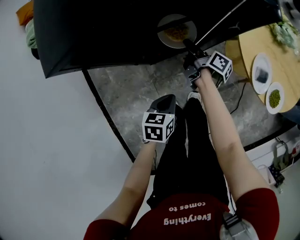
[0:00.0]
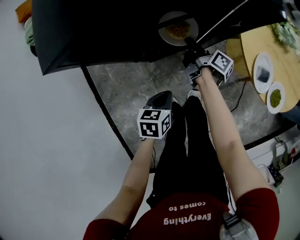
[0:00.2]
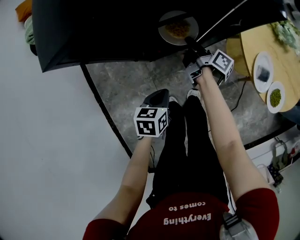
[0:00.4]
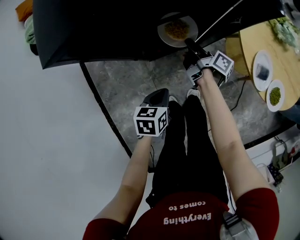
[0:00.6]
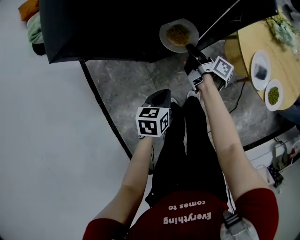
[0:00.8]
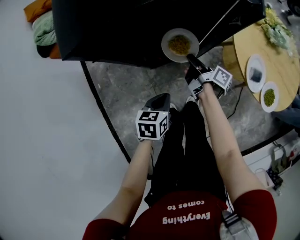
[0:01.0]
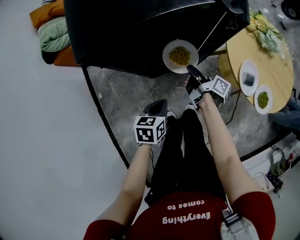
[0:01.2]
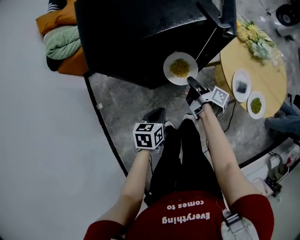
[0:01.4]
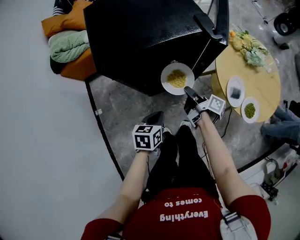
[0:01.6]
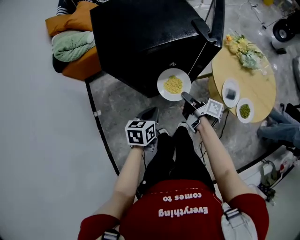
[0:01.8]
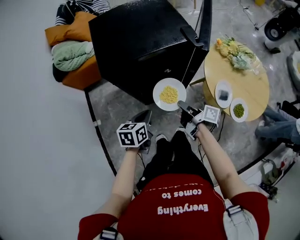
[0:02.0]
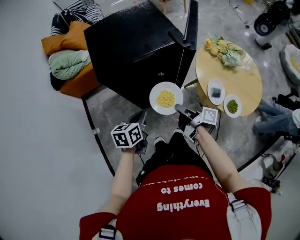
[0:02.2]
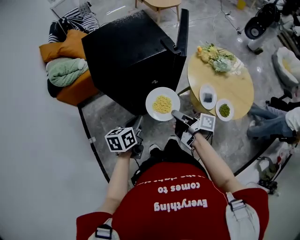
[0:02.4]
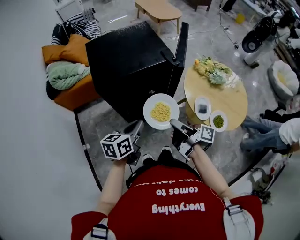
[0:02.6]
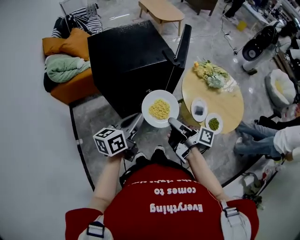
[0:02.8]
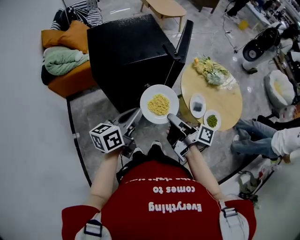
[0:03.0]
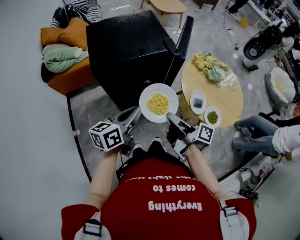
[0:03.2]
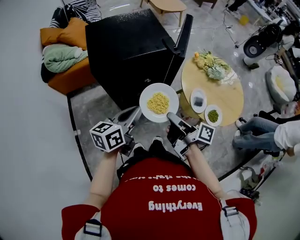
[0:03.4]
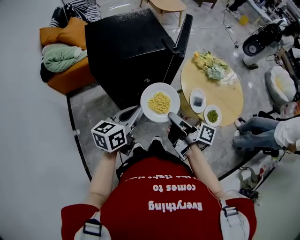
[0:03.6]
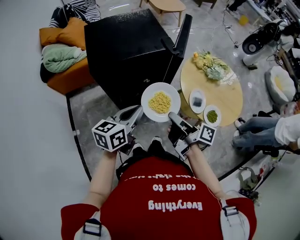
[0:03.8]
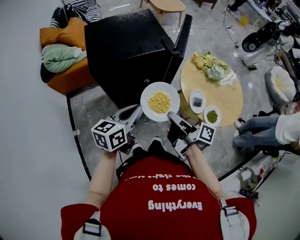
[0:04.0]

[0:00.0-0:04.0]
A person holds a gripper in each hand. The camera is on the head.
0:00.0 to 0:01.4: The left gripper goes some 10 cm upward.
0:01.4 to 0:02.6: The left gripper is displaced upward by approximately 20 cm, and changes its angle by roughly 20 degrees.

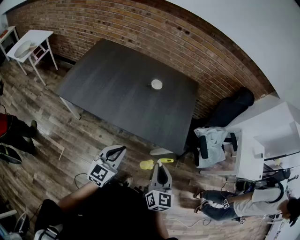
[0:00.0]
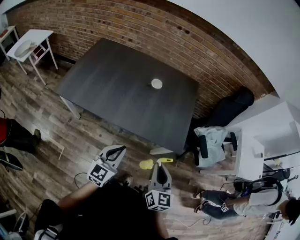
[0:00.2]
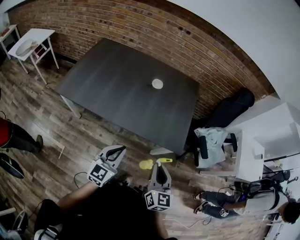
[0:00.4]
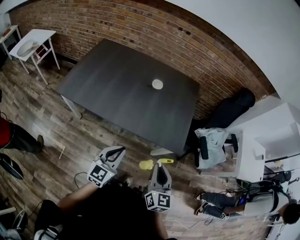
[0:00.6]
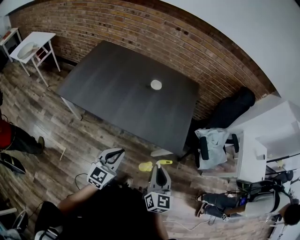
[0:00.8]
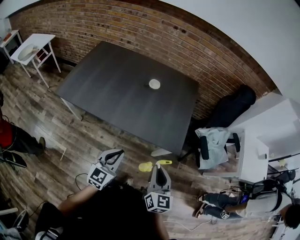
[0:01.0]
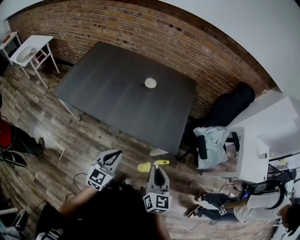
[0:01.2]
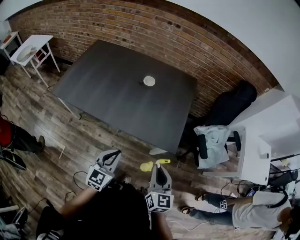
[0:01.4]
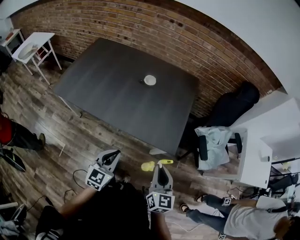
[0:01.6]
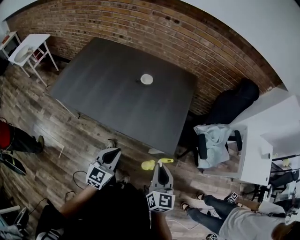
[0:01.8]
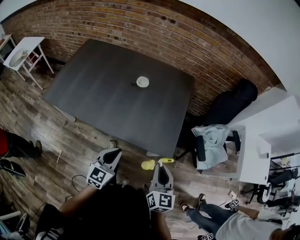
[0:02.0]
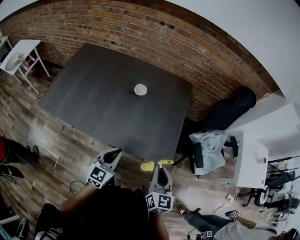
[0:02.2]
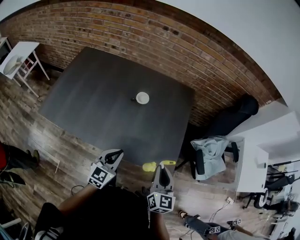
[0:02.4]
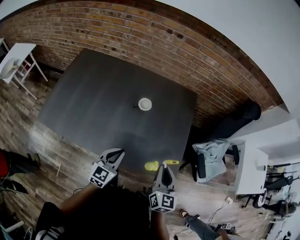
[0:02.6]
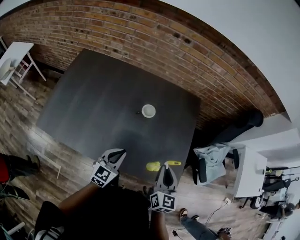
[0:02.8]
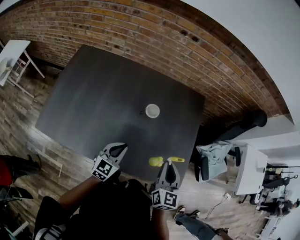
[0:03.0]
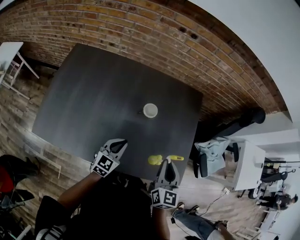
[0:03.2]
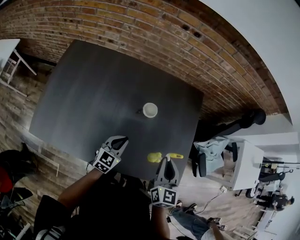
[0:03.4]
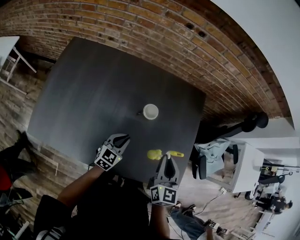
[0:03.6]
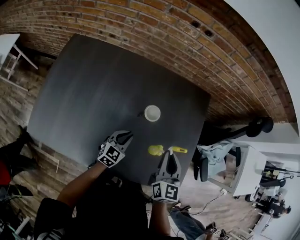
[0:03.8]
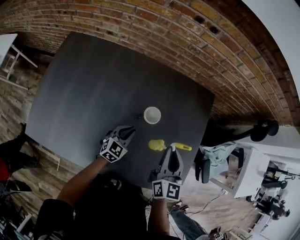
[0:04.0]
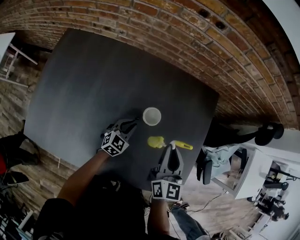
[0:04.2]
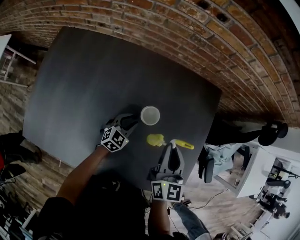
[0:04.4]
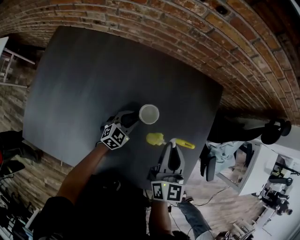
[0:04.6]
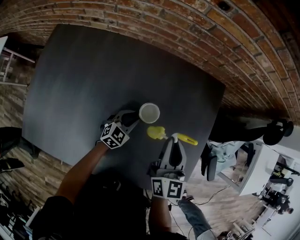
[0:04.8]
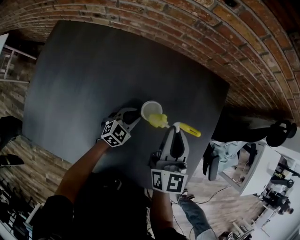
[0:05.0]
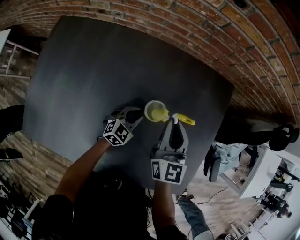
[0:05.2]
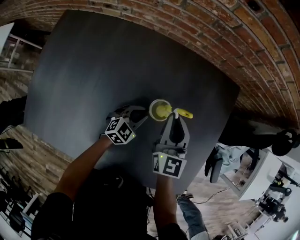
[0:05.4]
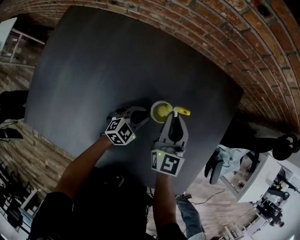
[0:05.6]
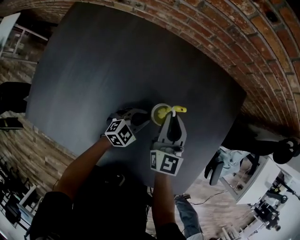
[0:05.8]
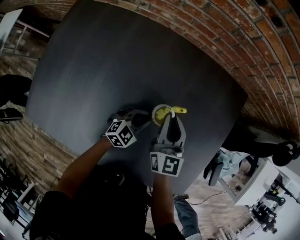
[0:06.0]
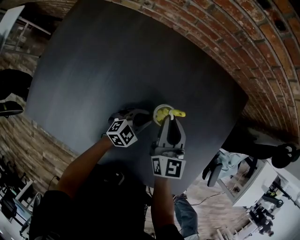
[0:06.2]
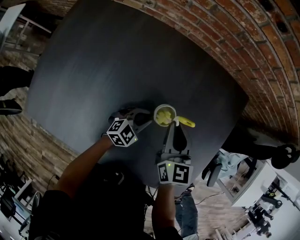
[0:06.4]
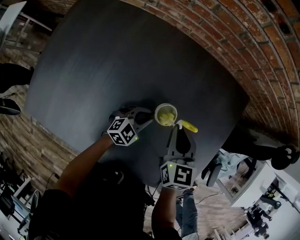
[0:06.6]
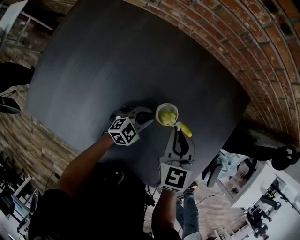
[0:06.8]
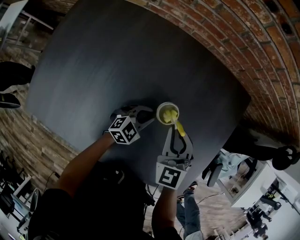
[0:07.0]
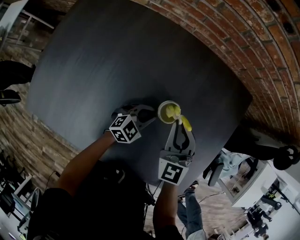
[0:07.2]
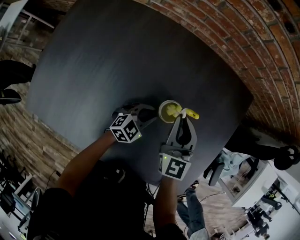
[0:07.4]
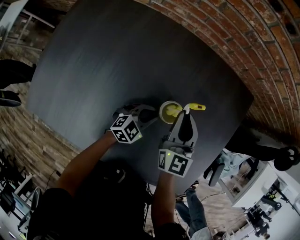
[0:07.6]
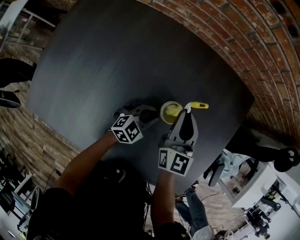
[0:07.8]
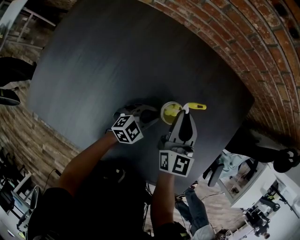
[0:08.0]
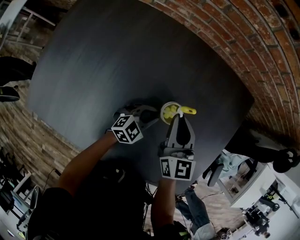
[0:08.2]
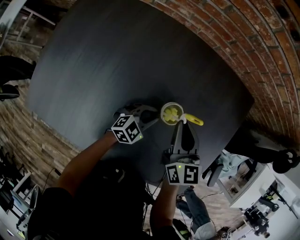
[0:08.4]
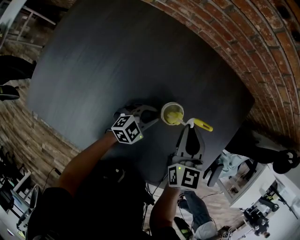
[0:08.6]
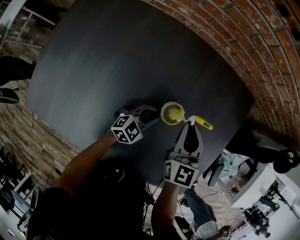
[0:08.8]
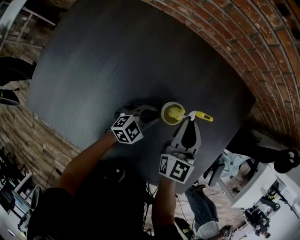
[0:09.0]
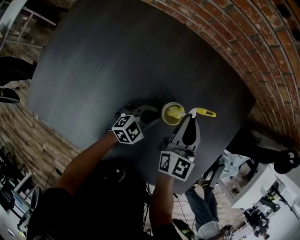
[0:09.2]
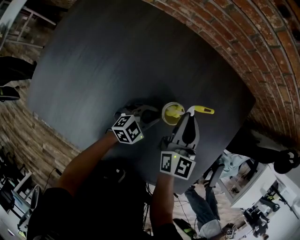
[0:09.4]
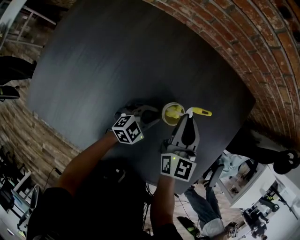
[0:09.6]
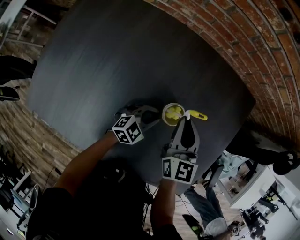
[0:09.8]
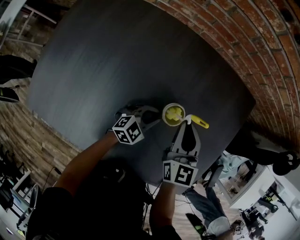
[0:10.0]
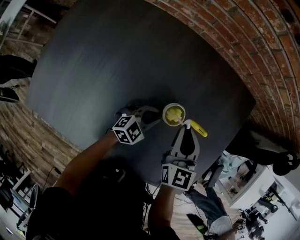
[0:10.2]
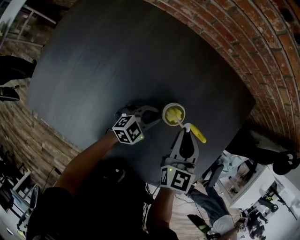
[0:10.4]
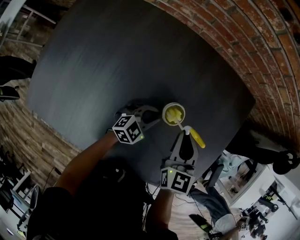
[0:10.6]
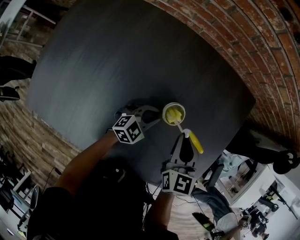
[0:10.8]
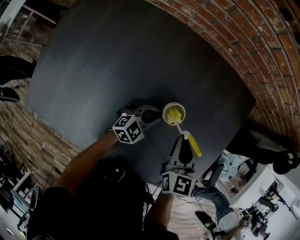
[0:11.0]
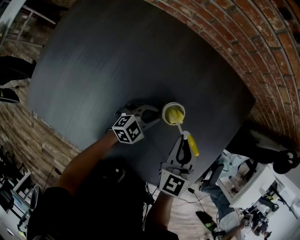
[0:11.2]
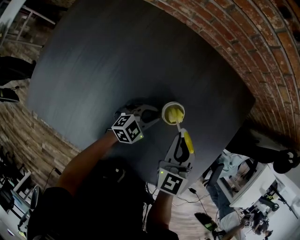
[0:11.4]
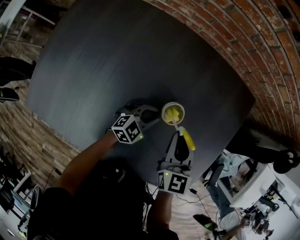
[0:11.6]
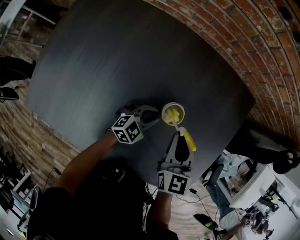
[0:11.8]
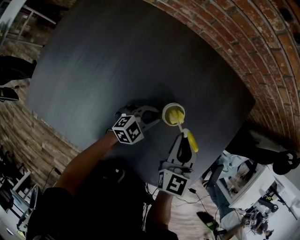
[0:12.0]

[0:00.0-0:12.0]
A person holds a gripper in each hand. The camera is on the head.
0:00.0 to 0:01.6: Both grippers travel together to the right, roughly 10 cm.
0:01.6 to 0:03.0: The two grippers go about 35 cm forward and to the left.
0:03.0 to 0:04.4: The right gripper moves forward, approximately 20 cm. The left gripper travels forward and downward by approximately 30 cm, and opens.
0:04.4 to 0:06.0: The right gripper heads to the left and downward, covering about 15 cm.
0:07.6 to 0:10.4: There are only small adjustments of the grippers.
0:10.4 to 0:12.0: The grippers stay close to where they were, moving slightly.

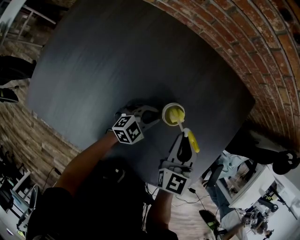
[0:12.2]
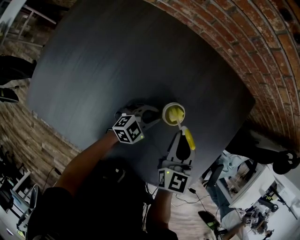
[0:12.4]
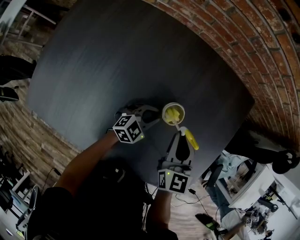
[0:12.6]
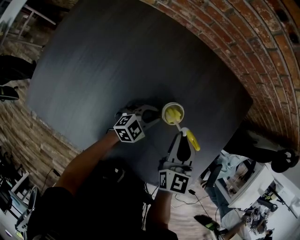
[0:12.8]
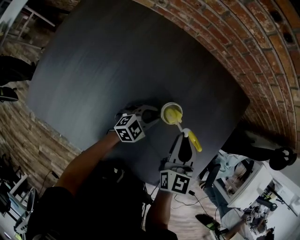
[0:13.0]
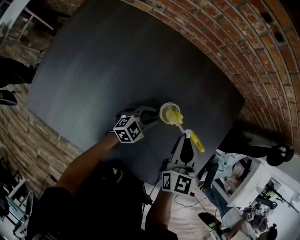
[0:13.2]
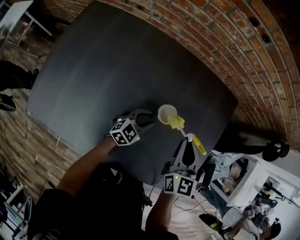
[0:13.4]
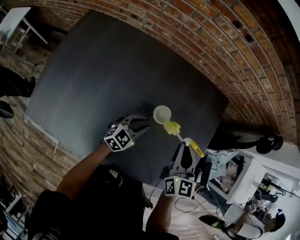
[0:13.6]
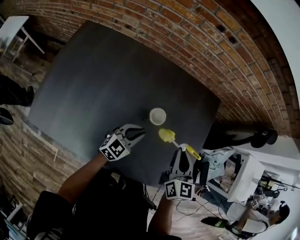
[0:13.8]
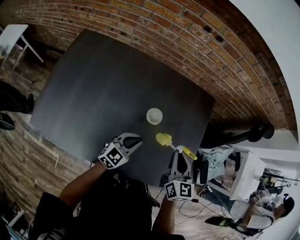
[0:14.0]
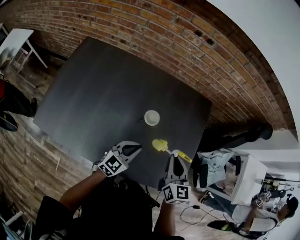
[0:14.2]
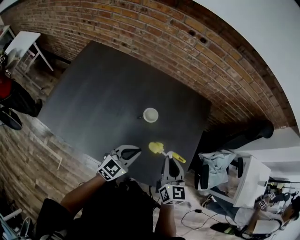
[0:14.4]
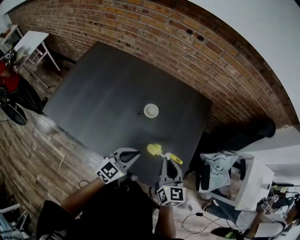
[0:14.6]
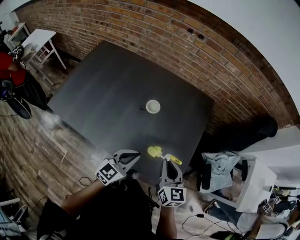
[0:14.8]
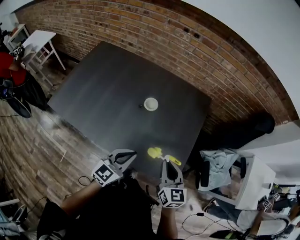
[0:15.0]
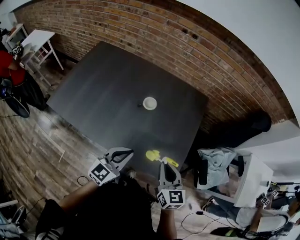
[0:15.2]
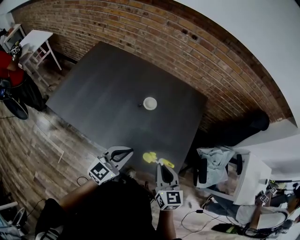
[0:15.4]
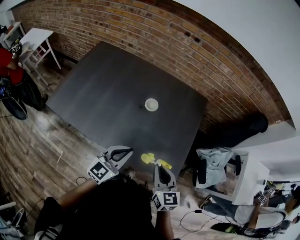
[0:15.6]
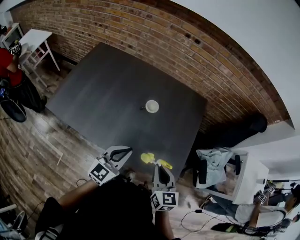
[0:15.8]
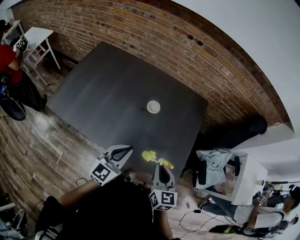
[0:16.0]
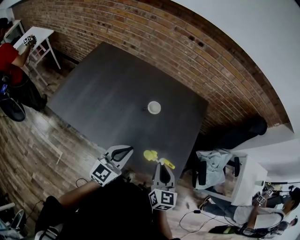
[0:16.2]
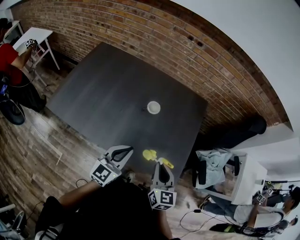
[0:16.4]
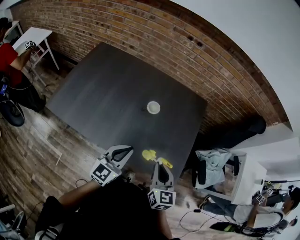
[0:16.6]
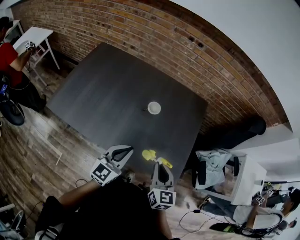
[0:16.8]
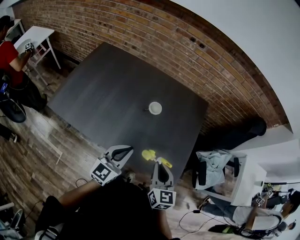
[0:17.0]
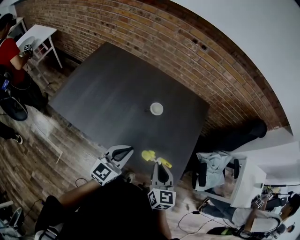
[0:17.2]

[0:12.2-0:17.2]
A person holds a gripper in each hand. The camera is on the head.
0:12.2 to 0:13.8: The left gripper travels upward and backward by about 15 cm; the right gripper goes some 15 cm upward, backward and to the right.
0:13.8 to 0:15.6: The right gripper is displaced backward by some 25 cm. The left gripper is displaced backward and upward by roughly 30 cm.
0:15.6 to 0:17.2: There are only small adjustments of the grippers.

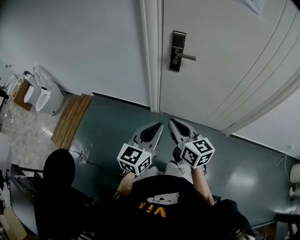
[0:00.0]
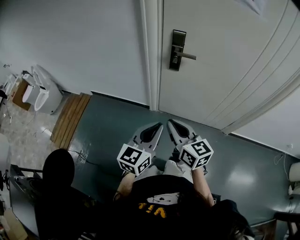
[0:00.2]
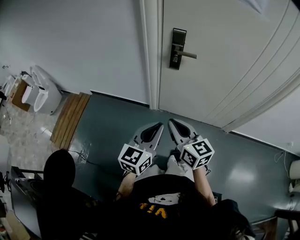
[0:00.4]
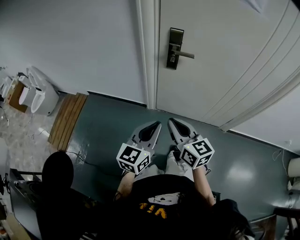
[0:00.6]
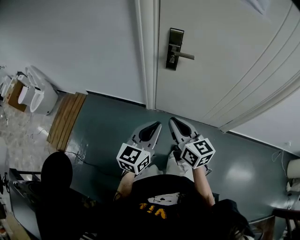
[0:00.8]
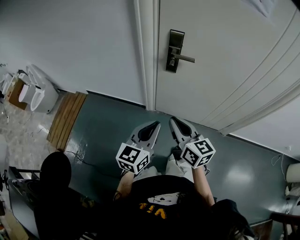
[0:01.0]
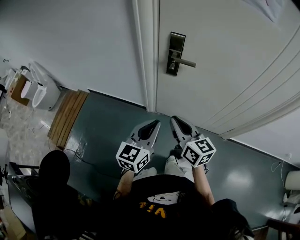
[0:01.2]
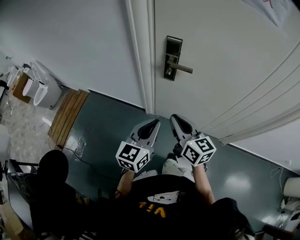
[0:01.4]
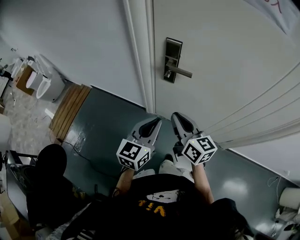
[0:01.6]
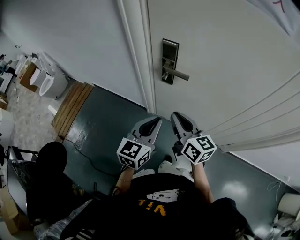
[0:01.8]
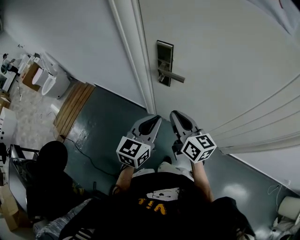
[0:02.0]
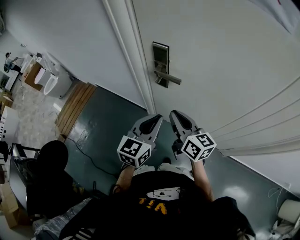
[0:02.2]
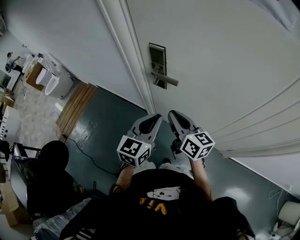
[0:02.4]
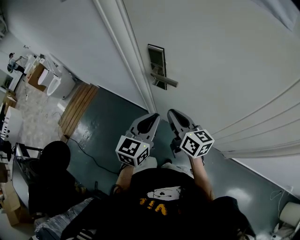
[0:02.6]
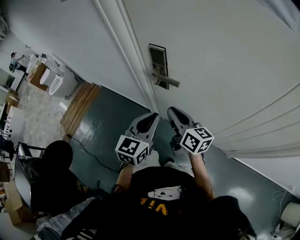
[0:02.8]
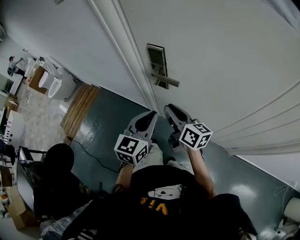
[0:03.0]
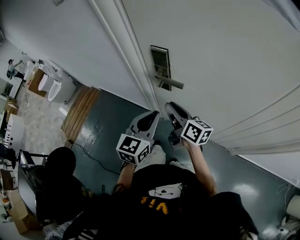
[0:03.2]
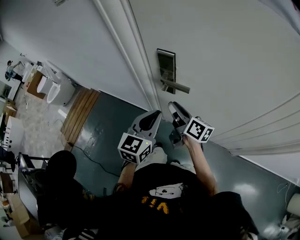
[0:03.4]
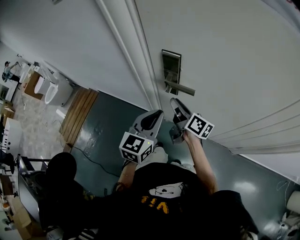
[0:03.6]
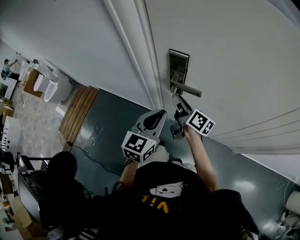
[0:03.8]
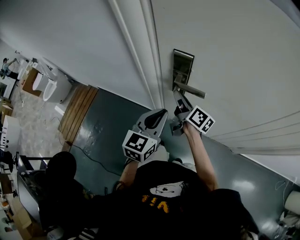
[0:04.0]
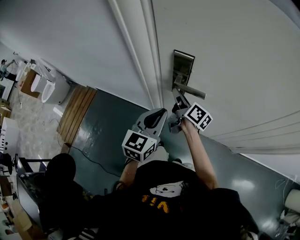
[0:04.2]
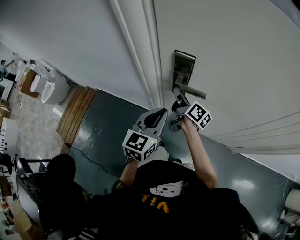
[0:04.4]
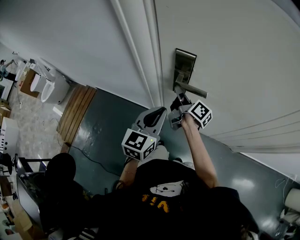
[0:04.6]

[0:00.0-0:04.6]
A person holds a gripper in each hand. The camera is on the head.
0:00.0 to 0:01.6: The two grippers go some 20 cm forward and to the right.
0:01.6 to 0:03.0: Both grippers move forward and to the right, about 10 cm.
0:03.0 to 0:04.6: The left gripper heads to the left and forward, covering about 10 cm. Meanwhile the right gripper is displaced forward and downward by about 15 cm, and changes its angle by approximately 40 degrees.
